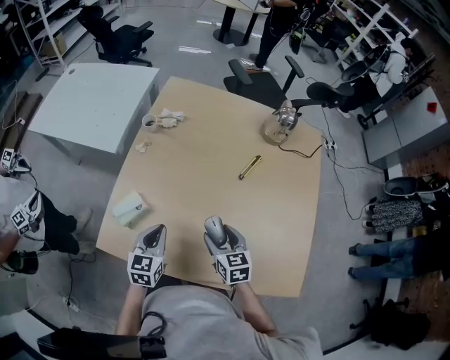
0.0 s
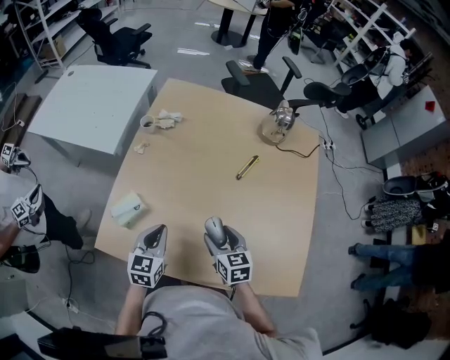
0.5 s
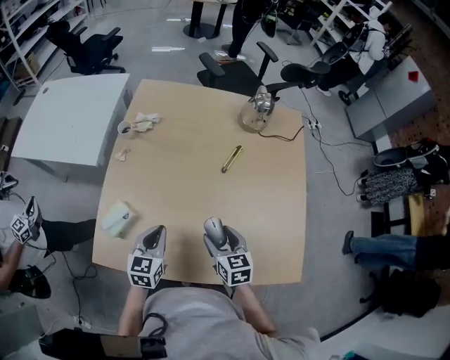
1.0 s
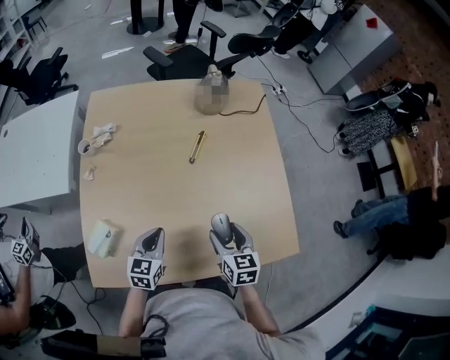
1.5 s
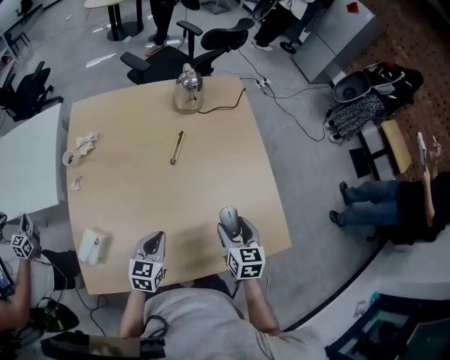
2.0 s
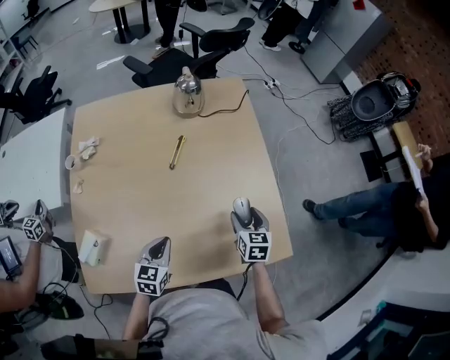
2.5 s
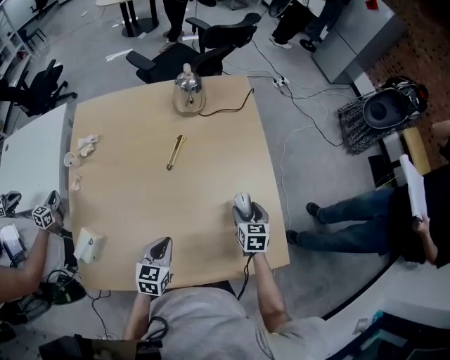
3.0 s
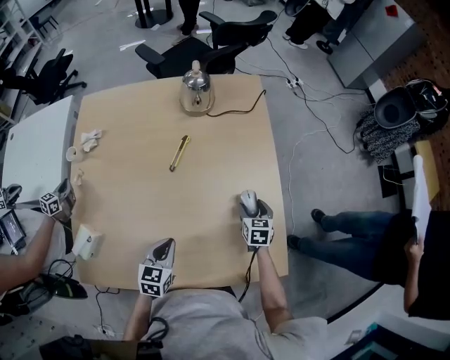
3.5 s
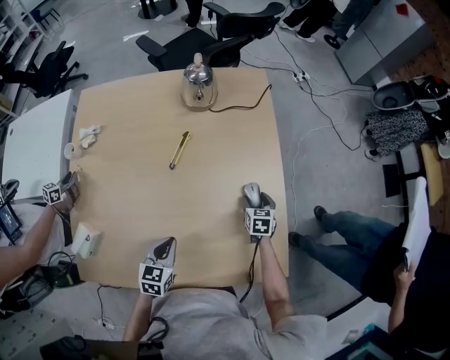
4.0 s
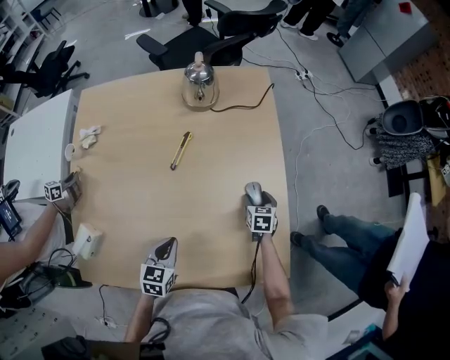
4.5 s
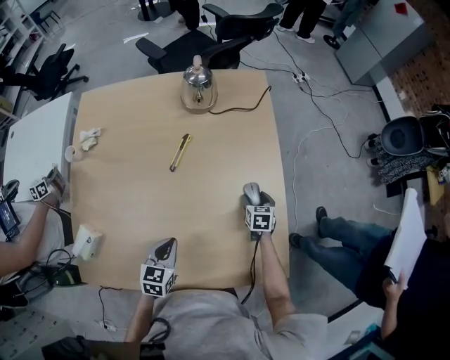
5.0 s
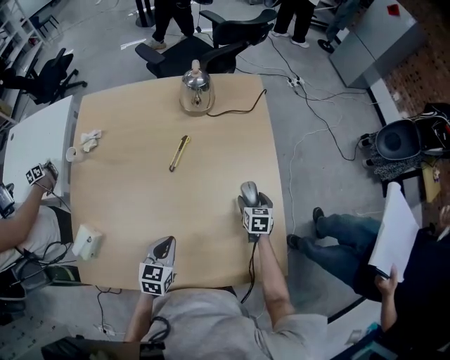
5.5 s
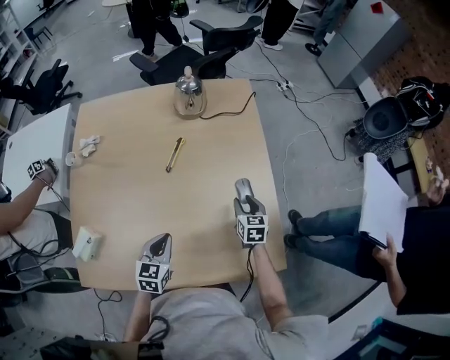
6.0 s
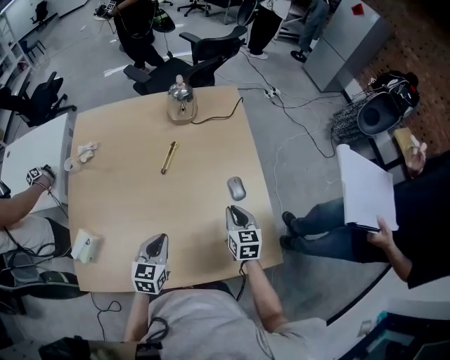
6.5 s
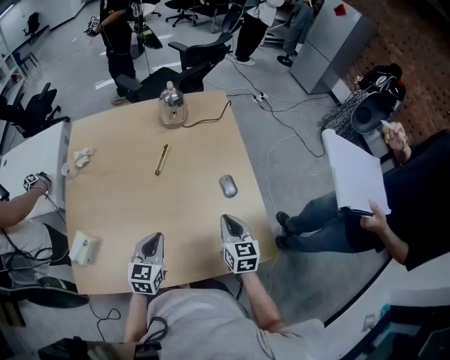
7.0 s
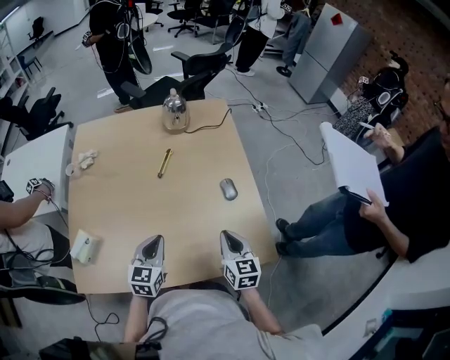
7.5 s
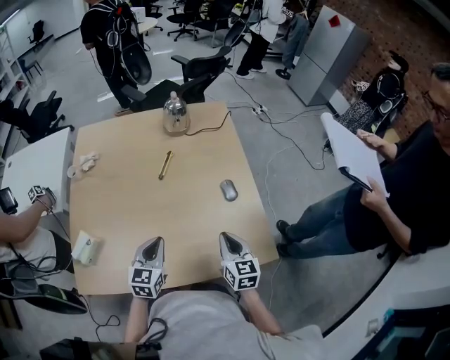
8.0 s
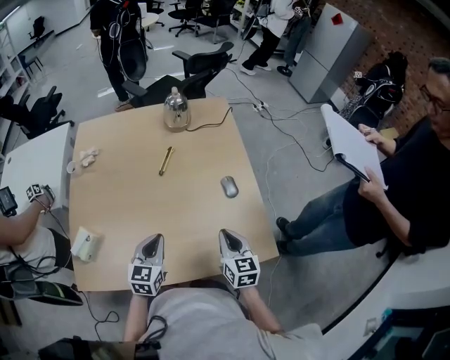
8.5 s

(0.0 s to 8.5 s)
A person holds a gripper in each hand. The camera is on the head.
0.0 s - 2.0 s: The left gripper ends up some 15 cm from where it was, and changes its angle by about 30 degrees. Meanwhile the right gripper changes place by about 20 cm, and swivels about 40 degrees.
2.0 s - 4.0 s: The left gripper moves to the right, about 10 cm. The right gripper heads forward, downward and to the right, covering about 30 cm.
4.0 s - 6.5 s: The right gripper shifts some 20 cm upward and backward, and closes; the left gripper heads upward, covering approximately 5 cm.
6.5 s - 8.5 s: The right gripper is displaced backward and upward by roughly 15 cm. Meanwhile the left gripper ends up roughly 5 cm from where it was.

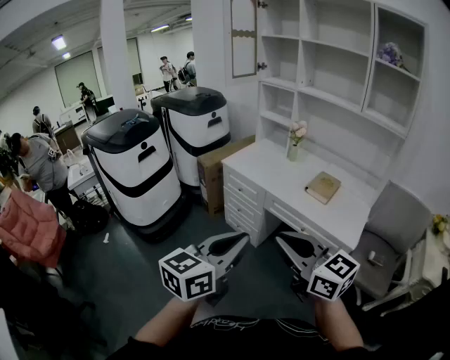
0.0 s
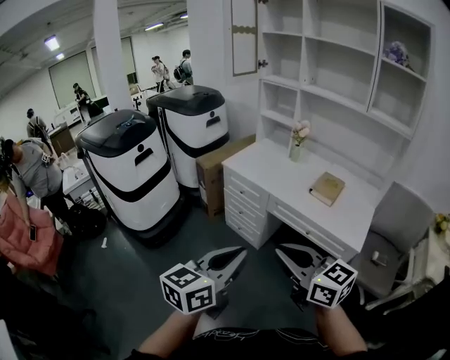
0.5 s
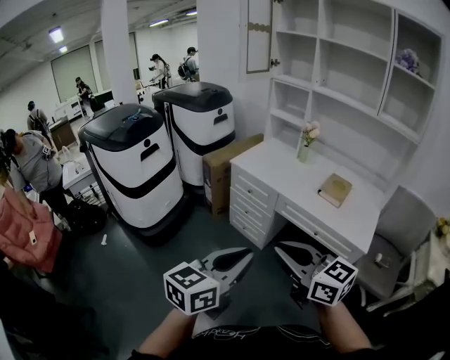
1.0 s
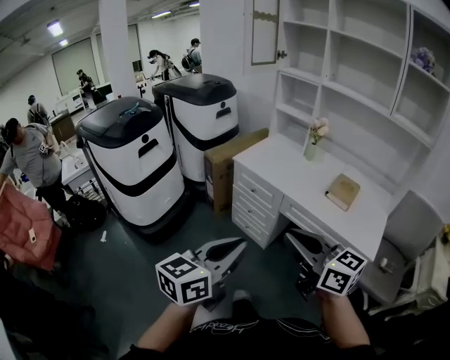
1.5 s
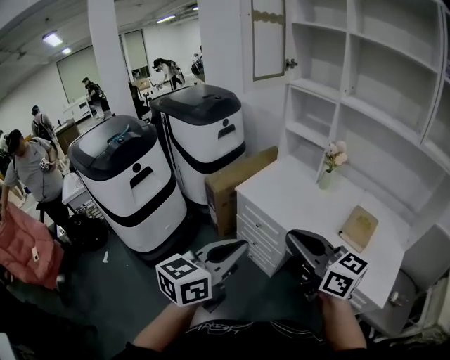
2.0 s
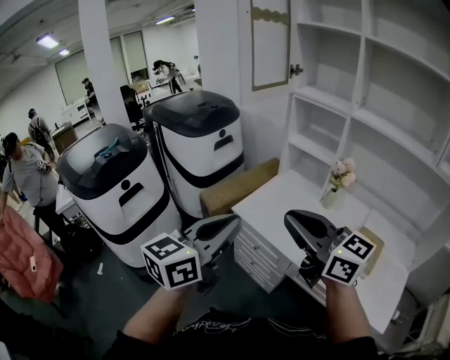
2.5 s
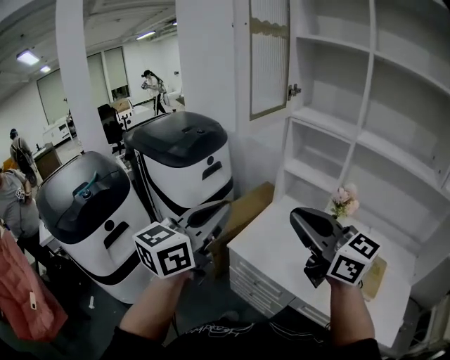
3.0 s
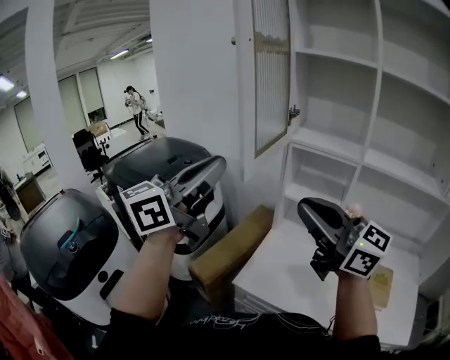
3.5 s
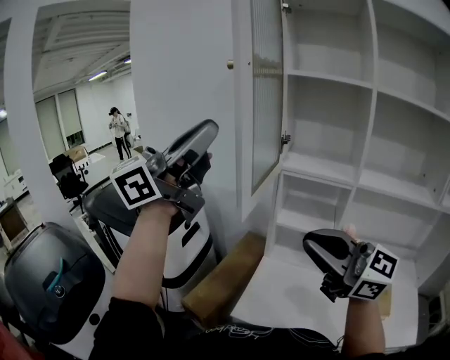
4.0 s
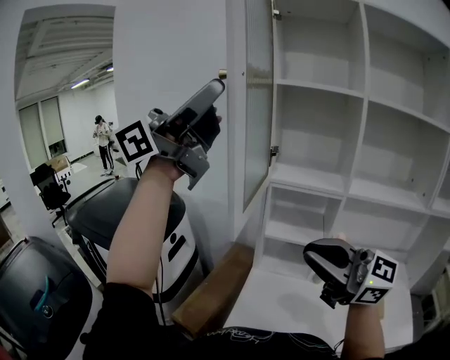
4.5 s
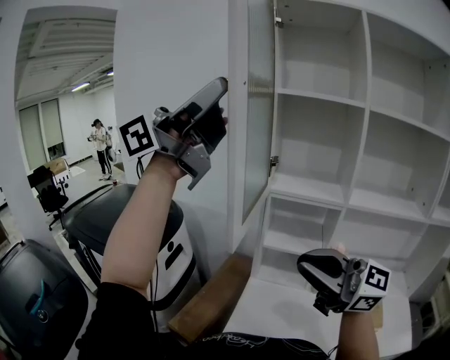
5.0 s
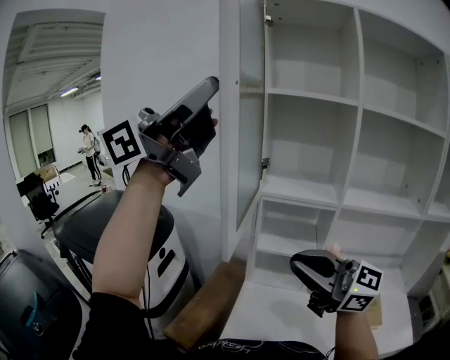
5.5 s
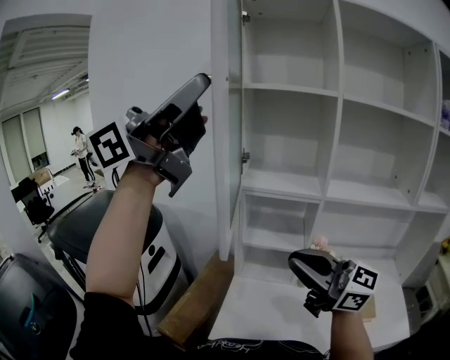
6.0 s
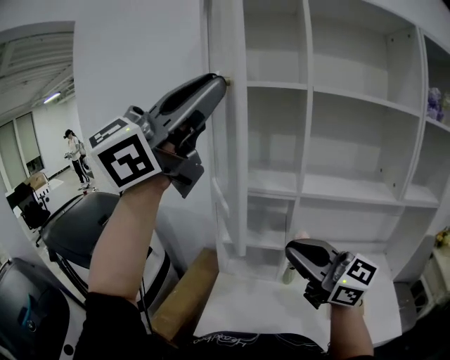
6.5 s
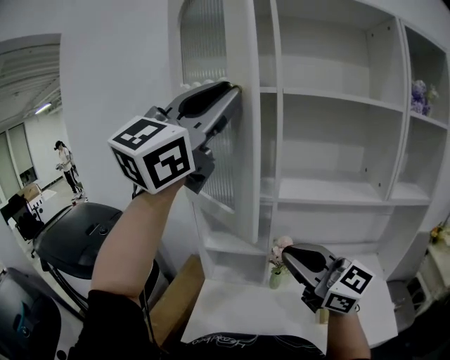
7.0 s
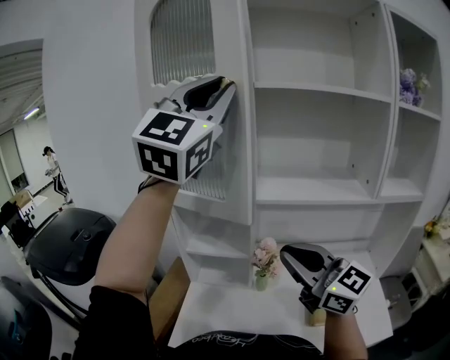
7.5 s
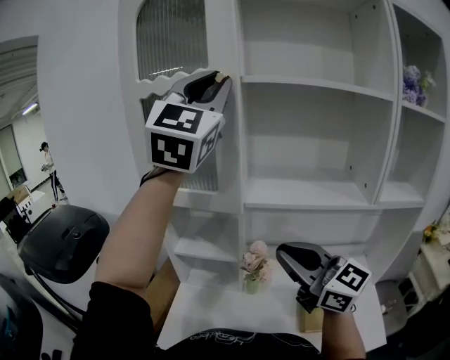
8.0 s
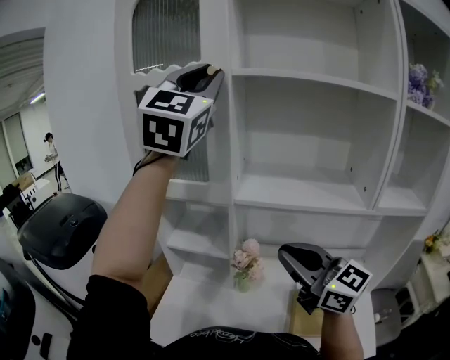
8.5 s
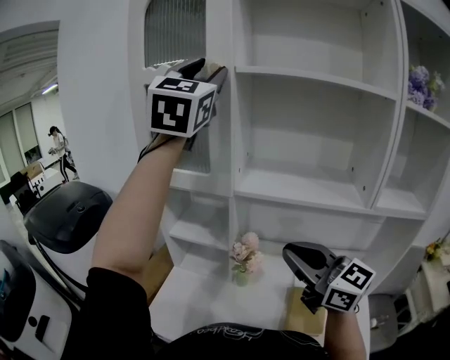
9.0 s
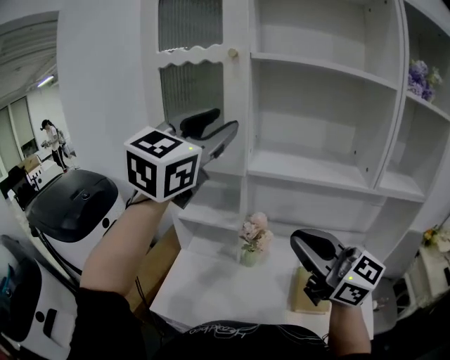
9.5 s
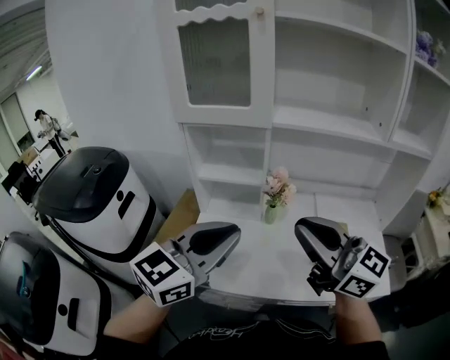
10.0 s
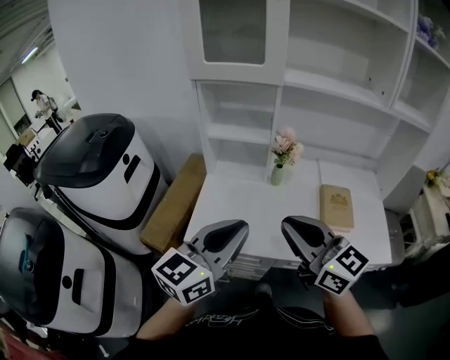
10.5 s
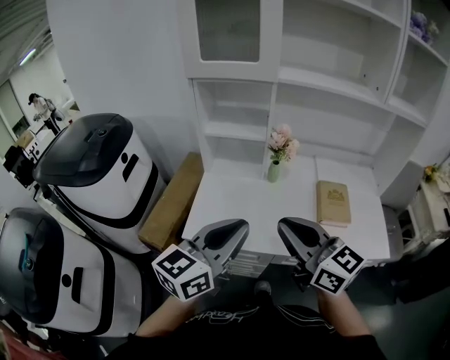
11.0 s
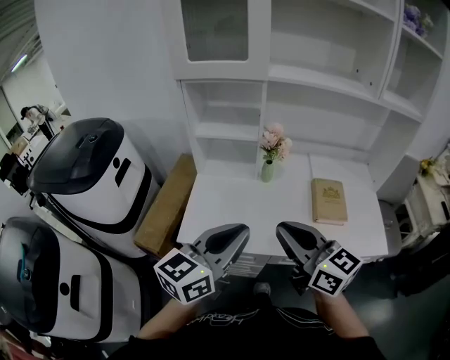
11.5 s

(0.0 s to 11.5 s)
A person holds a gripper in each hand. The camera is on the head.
0.0 s - 2.0 s: Both grippers travel together forward, about 35 cm.
2.0 s - 4.0 s: The two grippers travel together, approximately 50 cm. The left gripper points its fingers approximately 30 degrees further upward; the right gripper turns by approximately 30 degrees.
4.0 s - 6.0 s: The left gripper is displaced upward by roughly 10 cm, swivels roughly 20 degrees, and opens, then closes again. The right gripper moves about 5 cm.
6.0 s - 7.5 s: The left gripper moves approximately 30 cm, and rotates around the line of its fingers by about 50 degrees, clockwise from behind. The right gripper moves about 20 cm, and rotates roughly 20 degrees.
7.5 s - 9.5 s: The left gripper heads downward, covering about 15 cm, turns by about 20 degrees, and opens up. Meanwhile the right gripper travels to the right and backward by some 10 cm.
9.5 s - 11.5 s: The right gripper shifts approximately 25 cm downward, backward and to the left, and swivels approximately 20 degrees. The left gripper goes some 40 cm downward and backward, rolls counterclockwise, seen from behind, by approximately 40 degrees, and closes up.

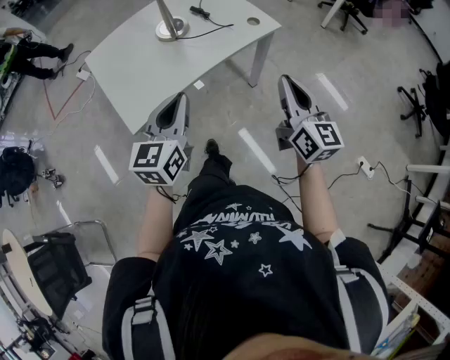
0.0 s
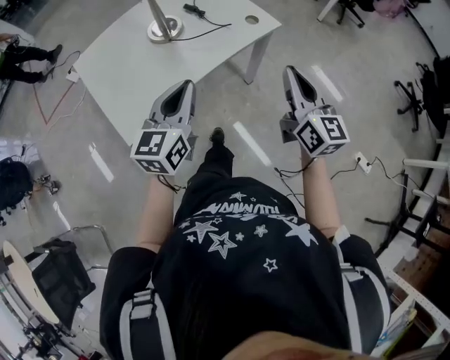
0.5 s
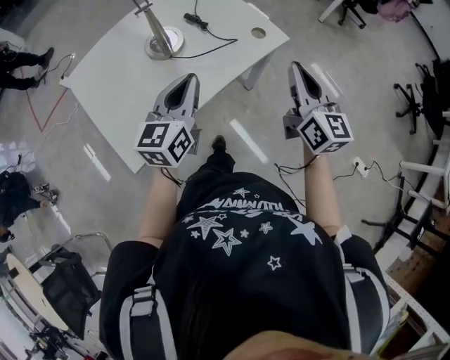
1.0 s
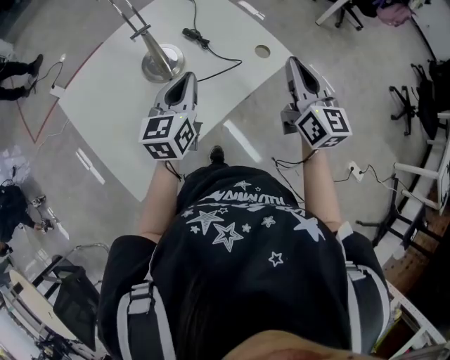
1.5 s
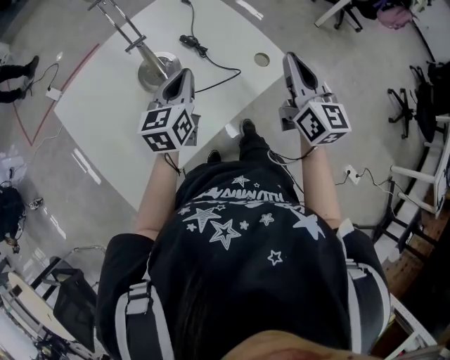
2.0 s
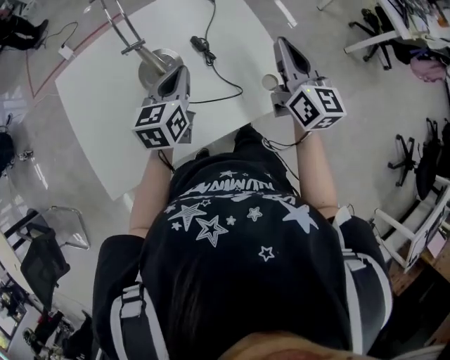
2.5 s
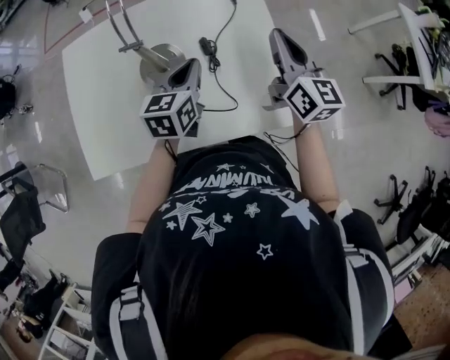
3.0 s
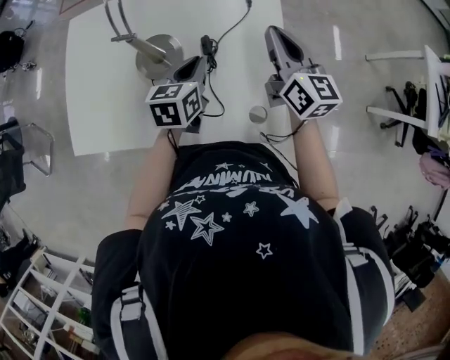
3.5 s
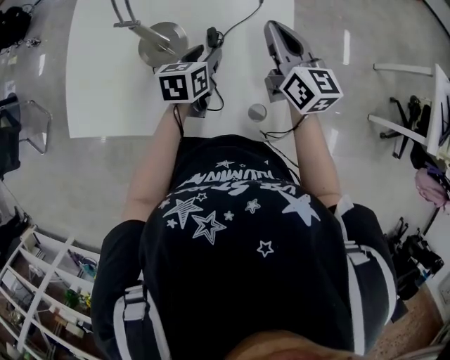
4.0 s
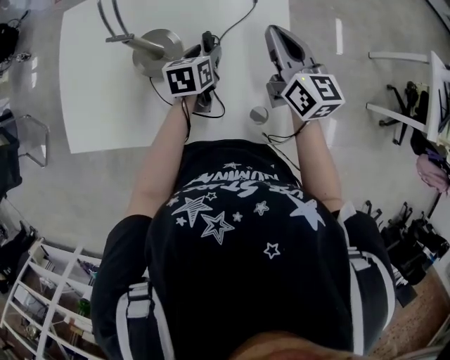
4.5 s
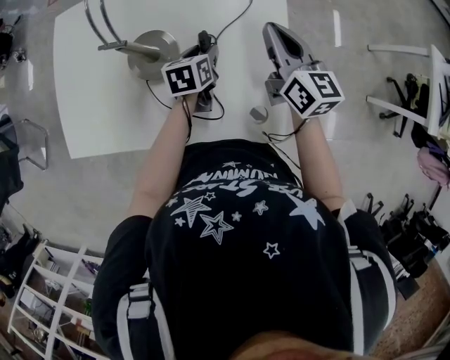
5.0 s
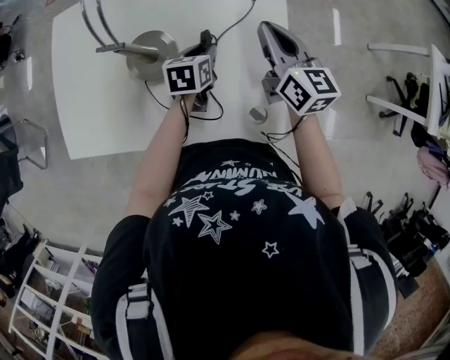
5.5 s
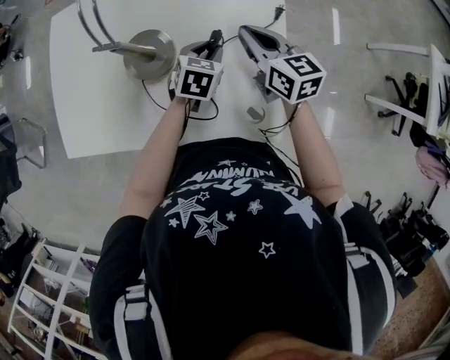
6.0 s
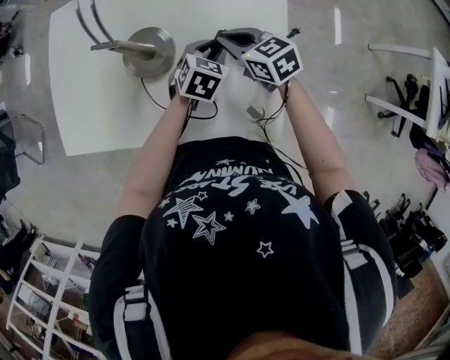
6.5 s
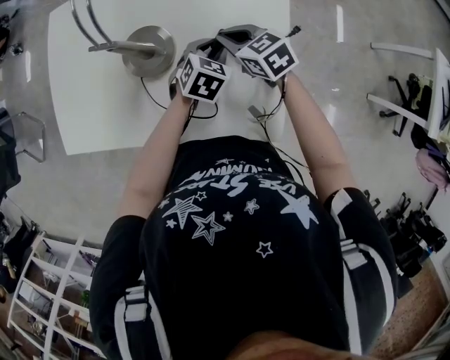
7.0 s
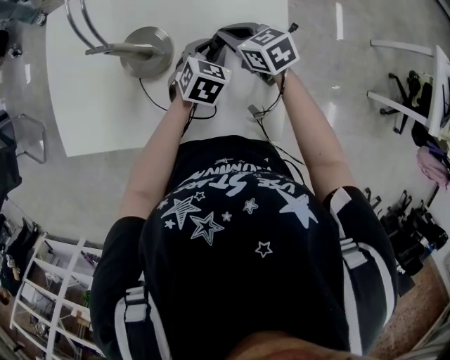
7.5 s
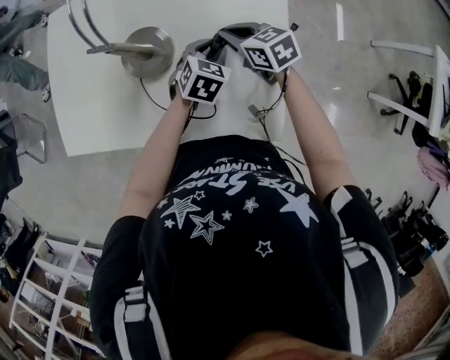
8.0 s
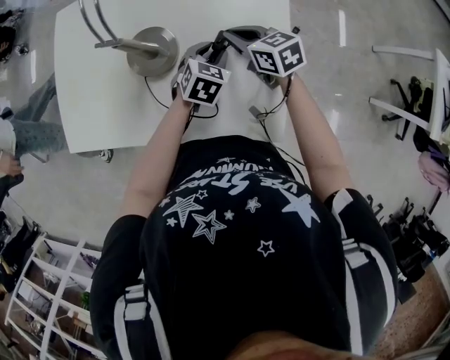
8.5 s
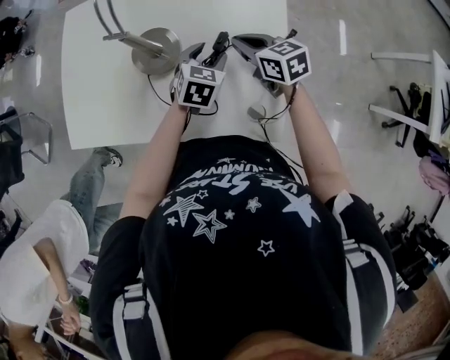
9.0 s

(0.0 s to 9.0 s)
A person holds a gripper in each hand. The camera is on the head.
0.0 s - 2.0 s: Both grippers move forward, approximately 35 cm.
2.0 s - 4.5 s: The left gripper ends up about 25 cm from where it was, changes its angle by roughly 50 degrees, and opens up. Meanwhile the right gripper ends up about 30 cm from where it was, and swivels roughly 50 degrees.
4.5 s - 7.0 s: The right gripper travels downward and to the left by roughly 15 cm, and tilts its fingers roughly 30 degrees downward. Meanwhile the left gripper turns by about 40 degrees.
7.0 s - 9.0 s: The left gripper opens up.
